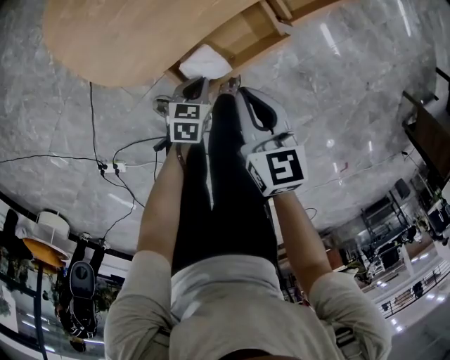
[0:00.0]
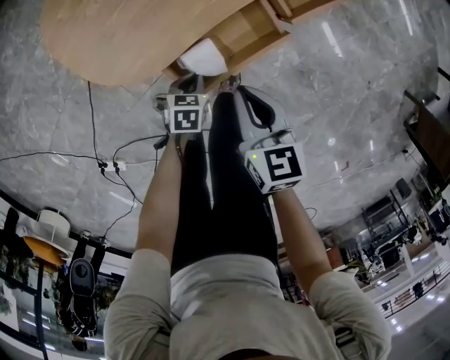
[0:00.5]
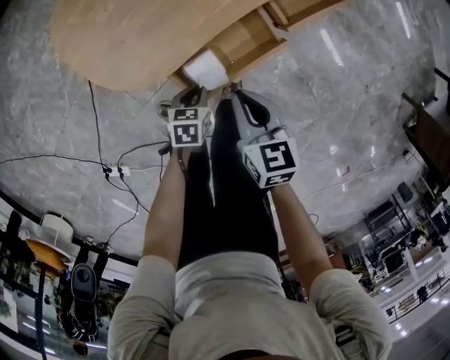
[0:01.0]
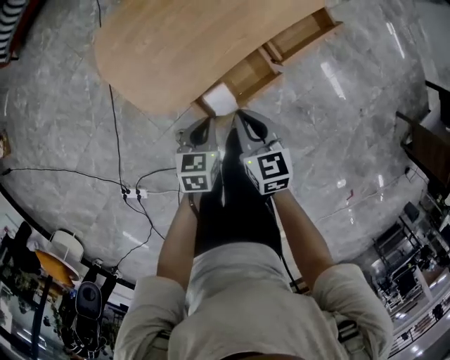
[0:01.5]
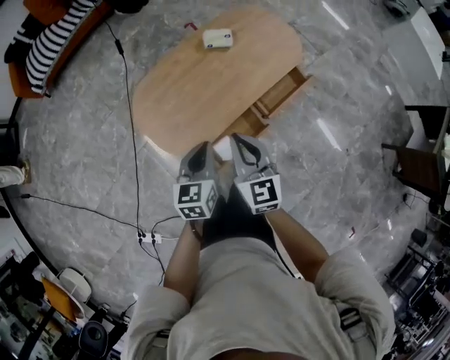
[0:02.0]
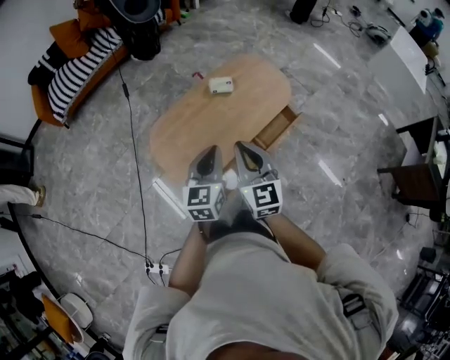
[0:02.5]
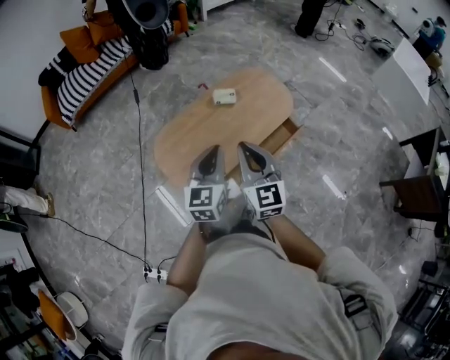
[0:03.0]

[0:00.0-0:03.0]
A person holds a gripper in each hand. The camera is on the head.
0:00.0 to 0:01.5: The left gripper shifts some 20 cm upward. Meanwhile the right gripper is displaced upward by approximately 10 cm.
0:01.5 to 0:03.0: The grippers both shift upward by about 40 cm. The right gripper points its fingers some 30 degrees further upward. The left gripper points its fingers approximately 40 degrees further upward.

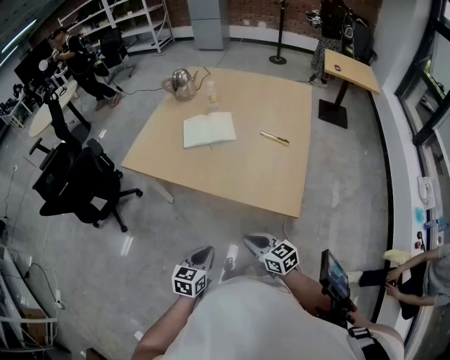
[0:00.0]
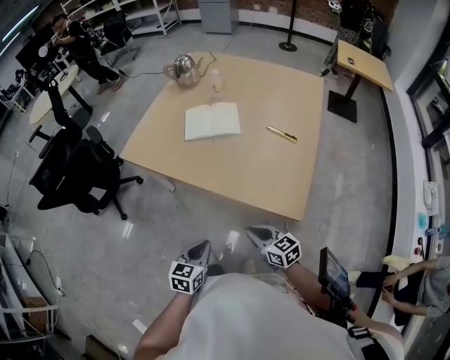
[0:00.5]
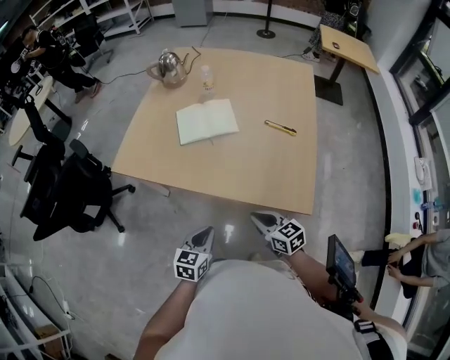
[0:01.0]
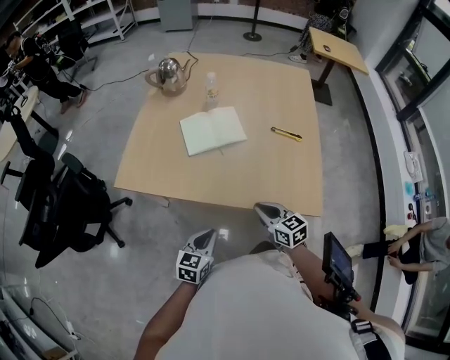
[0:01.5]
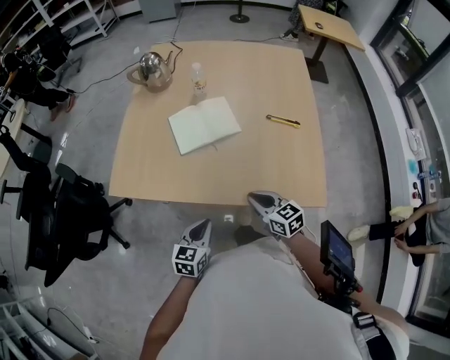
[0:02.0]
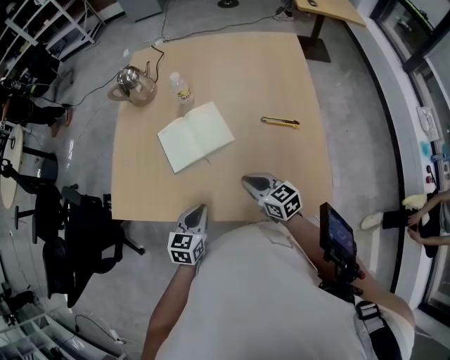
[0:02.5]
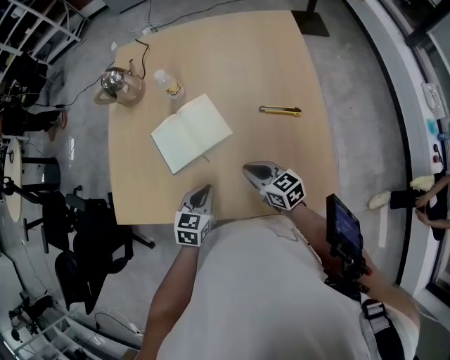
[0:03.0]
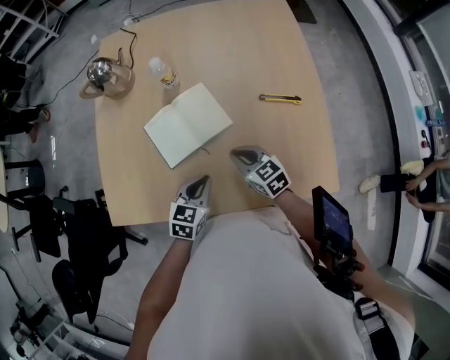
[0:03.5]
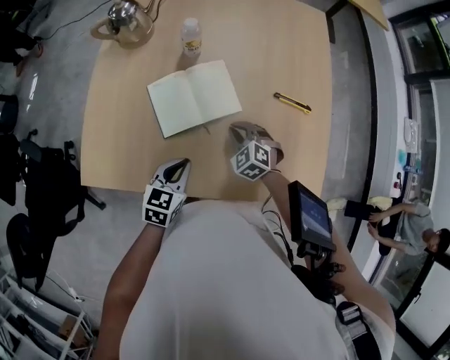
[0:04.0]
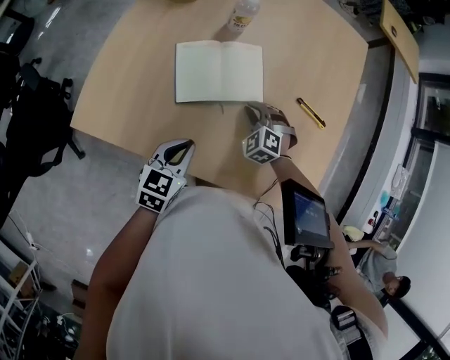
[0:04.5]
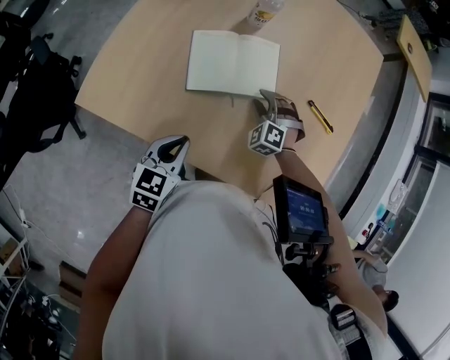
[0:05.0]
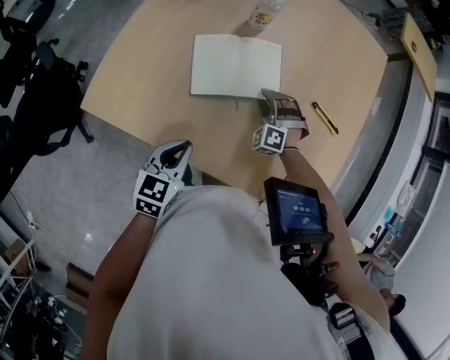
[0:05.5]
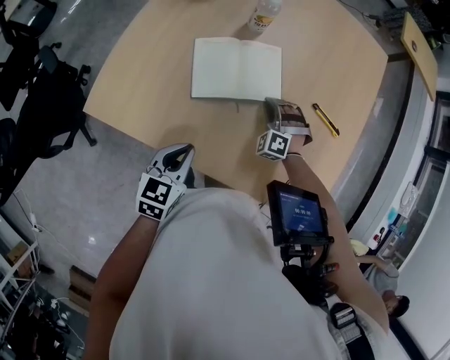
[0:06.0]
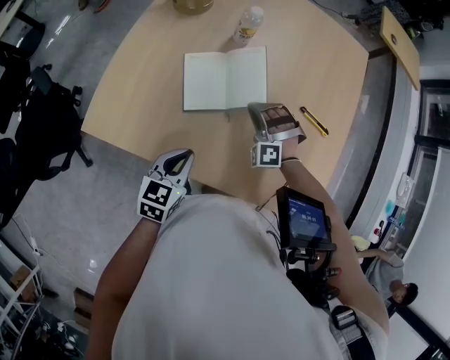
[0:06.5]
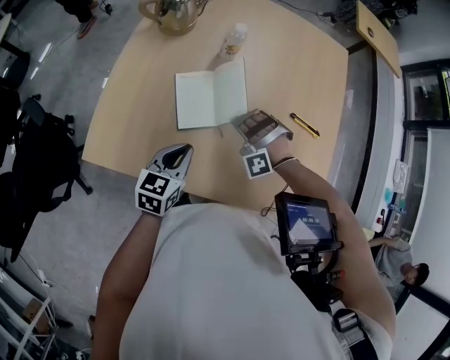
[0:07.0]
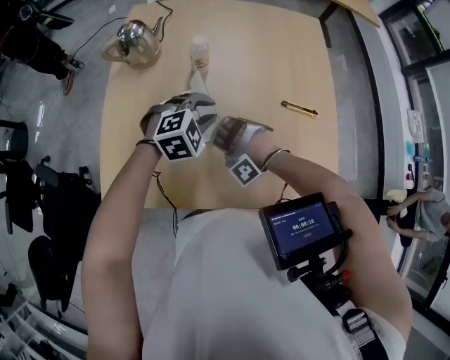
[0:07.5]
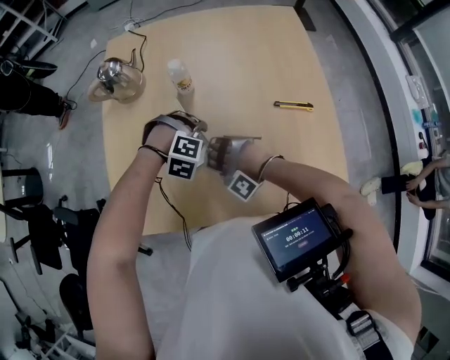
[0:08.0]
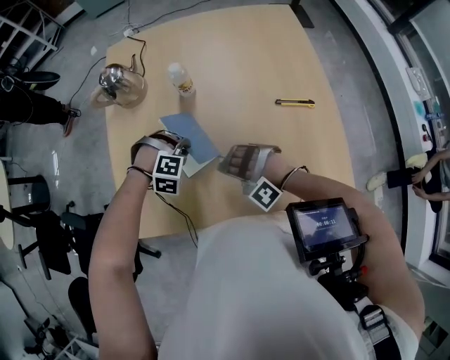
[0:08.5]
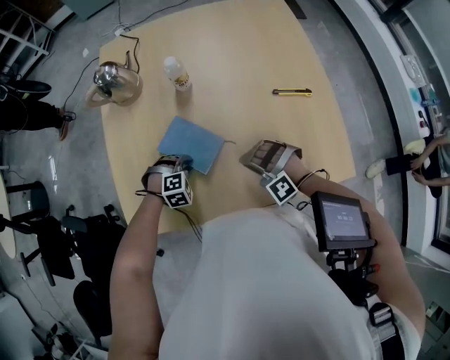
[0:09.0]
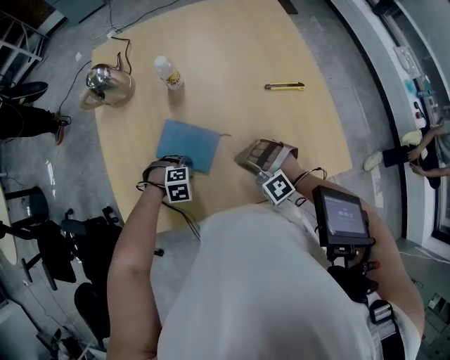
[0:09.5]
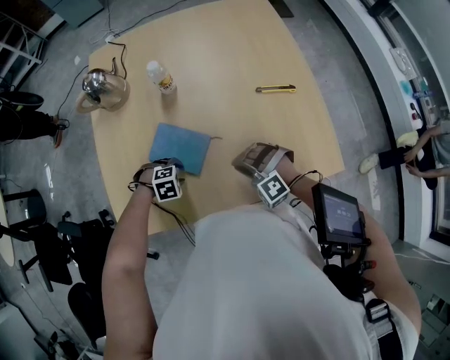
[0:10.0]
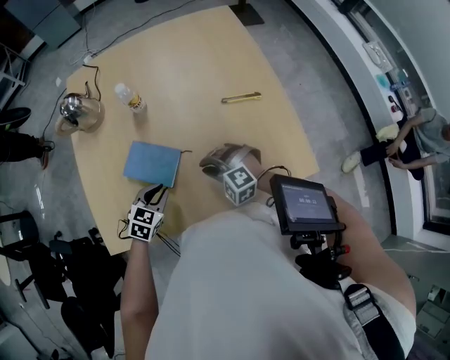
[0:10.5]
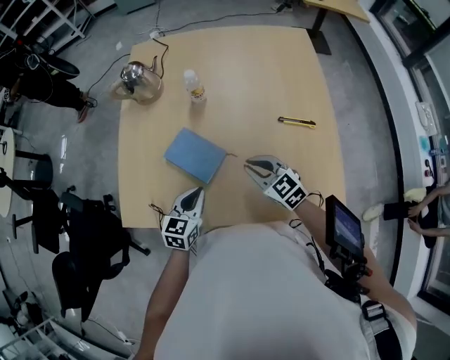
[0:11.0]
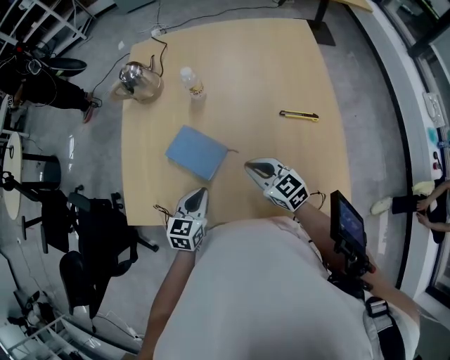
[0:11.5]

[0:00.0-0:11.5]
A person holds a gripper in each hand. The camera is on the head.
0:00.0 to 0:02.0: The left gripper moves forward and to the left, about 25 cm. The right gripper travels forward by roughly 20 cm.
0:02.0 to 0:04.0: Both grippers move forward, approximately 20 cm. The right gripper twists approximately 40 degrees counterclockwise, seen from behind.
0:04.0 to 0:06.0: The right gripper is displaced forward by roughly 5 cm, rotates around the line of its fingers by some 40 degrees, counterclockwise from behind, and opens, then closes once more. Meanwhile the left gripper travels backward by roughly 5 cm.
0:06.0 to 0:07.5: The right gripper goes approximately 15 cm to the left, upward and backward, and twists some 40 degrees counterclockwise, seen from behind; the left gripper shifts roughly 20 cm forward, rotates around the line of its fingers by some 70 degrees, clockwise from behind, and opens.
0:07.5 to 0:09.5: The left gripper travels downward by roughly 20 cm, and tilts its fingers about 30 degrees downward. The right gripper shifts by some 10 cm, and rotates around the line of its fingers by roughly 40 degrees, clockwise from behind.
0:09.5 to 0:11.5: The right gripper heads upward, covering about 5 cm, and twists approximately 70 degrees clockwise, seen from behind, while the left gripper heads upward, covering some 15 cm, angles its fingers upward, by approximately 50 degrees, and closes up.

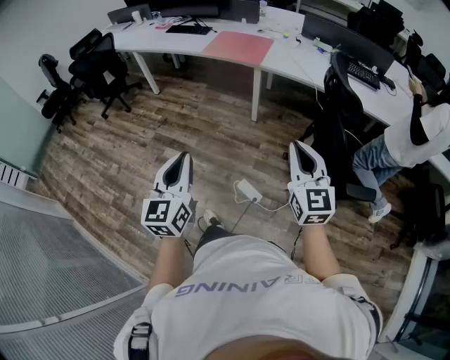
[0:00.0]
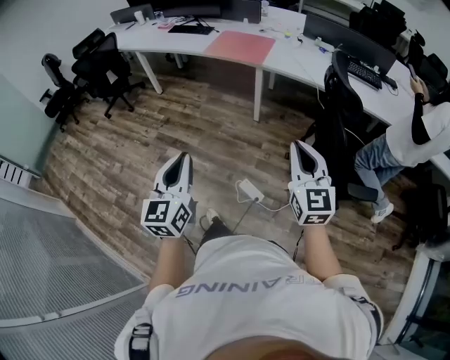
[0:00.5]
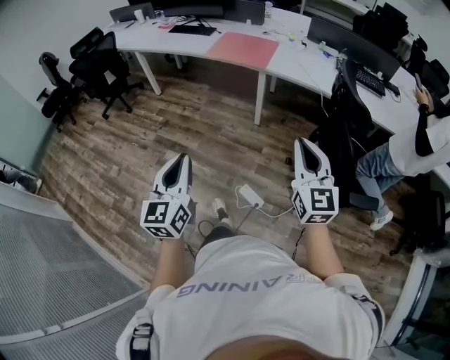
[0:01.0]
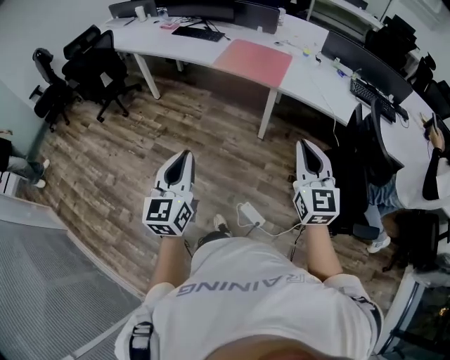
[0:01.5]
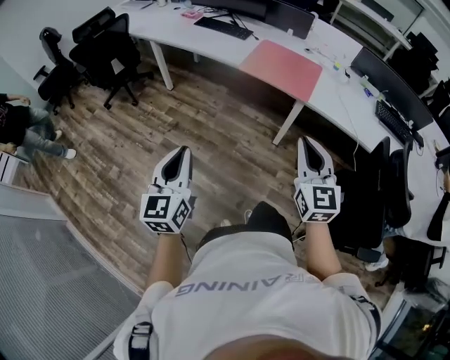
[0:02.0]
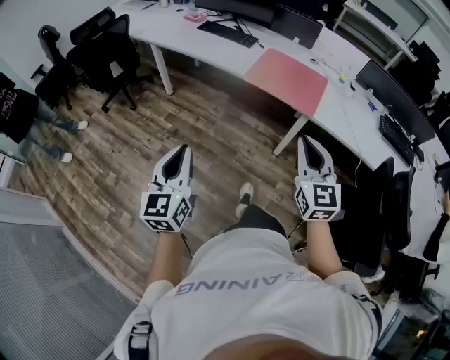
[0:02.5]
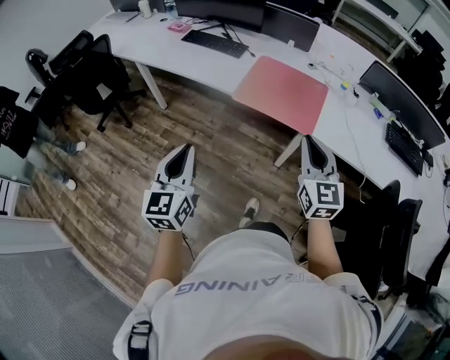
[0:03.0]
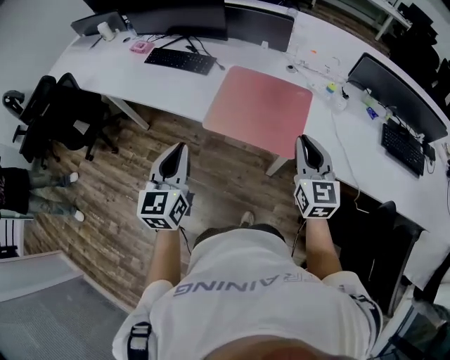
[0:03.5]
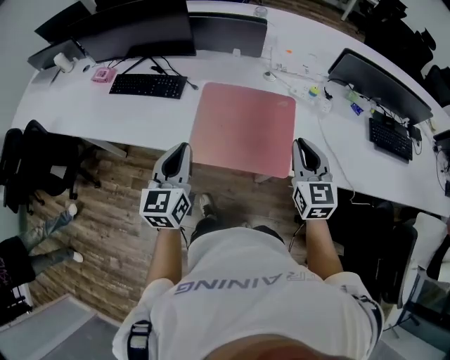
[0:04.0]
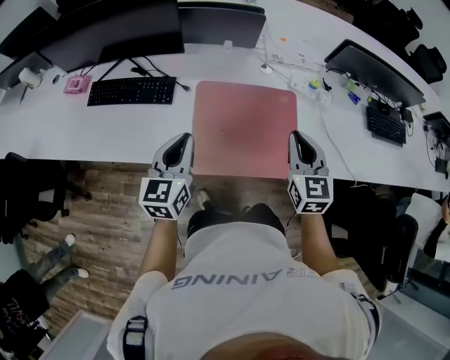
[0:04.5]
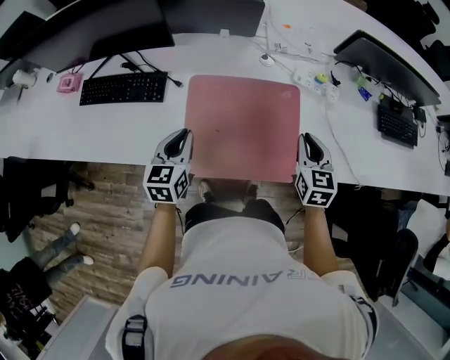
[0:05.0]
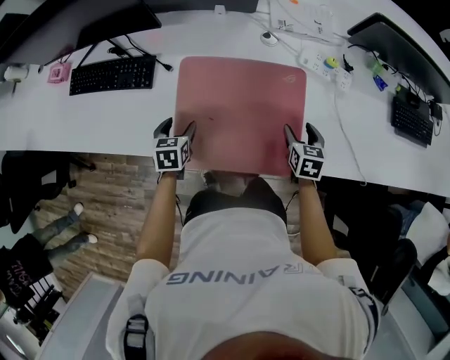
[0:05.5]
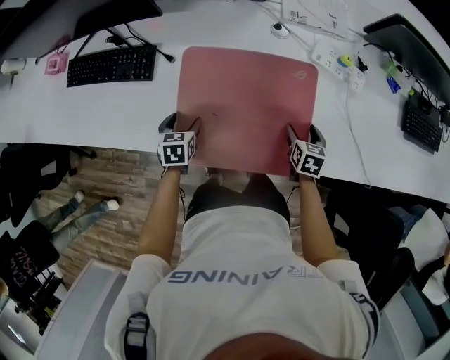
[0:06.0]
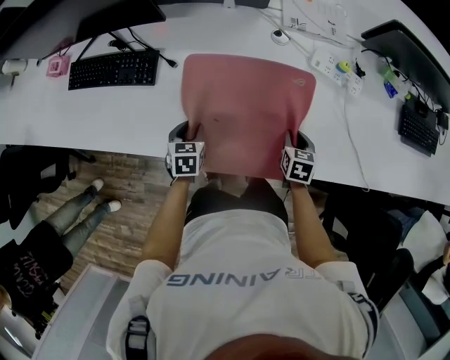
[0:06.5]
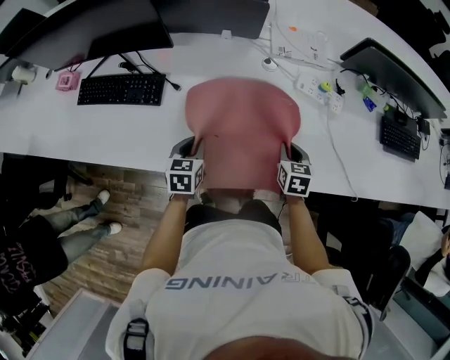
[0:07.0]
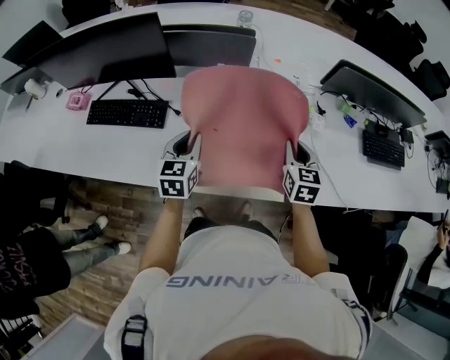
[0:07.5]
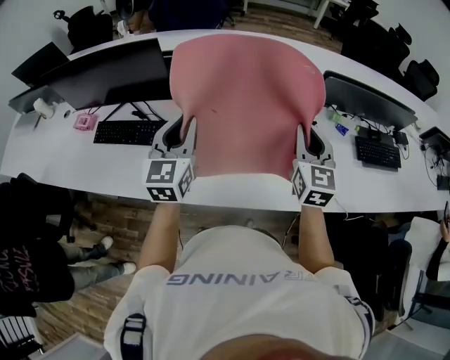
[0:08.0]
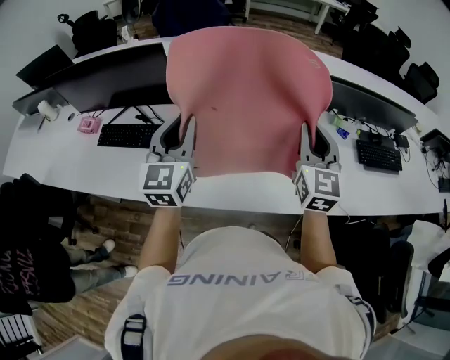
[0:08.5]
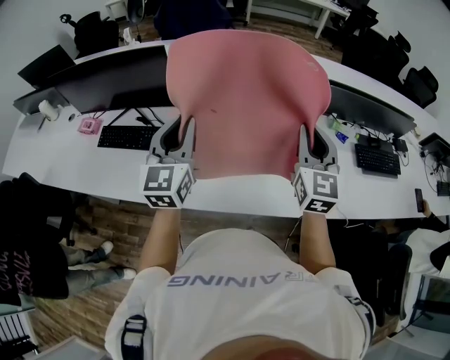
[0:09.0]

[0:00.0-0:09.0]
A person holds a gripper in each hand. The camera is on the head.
0:00.0 to 0:02.0: Both grippers move forward and to the left, about 40 cm.
0:02.0 to 0:04.5: The two grippers travel together, approximately 70 cm. The right gripper rotates some 30 degrees. Meanwhile the left gripper rotates approximately 30 degrees.
0:04.5 to 0:07.0: Both grippers travel together downward, roughly 20 cm. The right gripper changes its angle by approximately 30 degrees, and opens, then closes once more. Meanwhile the left gripper swivels roughly 30 degrees, and opens, then closes again.
0:07.0 to 0:09.0: The grippers both shift upward by some 35 cm. The left gripper tips its fingers upward by some 50 degrees; the right gripper tips its fingers upward by approximately 50 degrees.

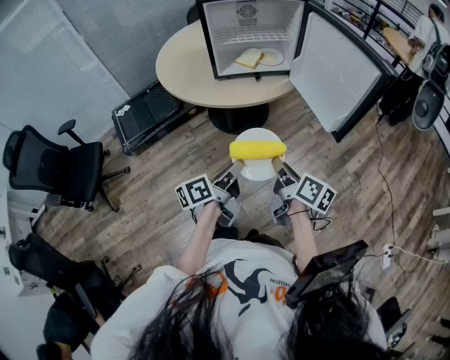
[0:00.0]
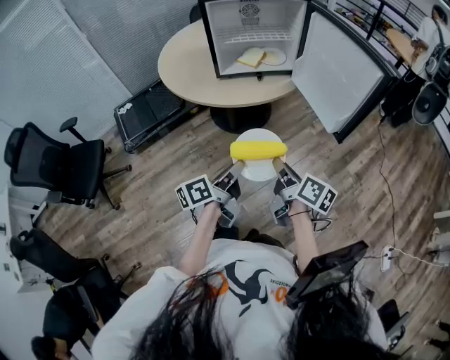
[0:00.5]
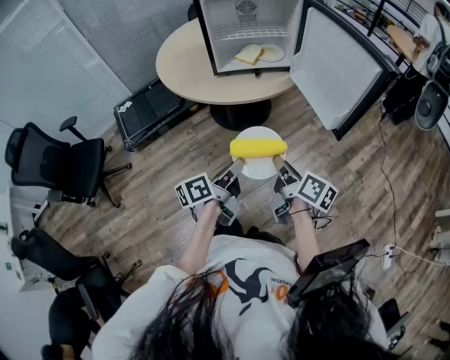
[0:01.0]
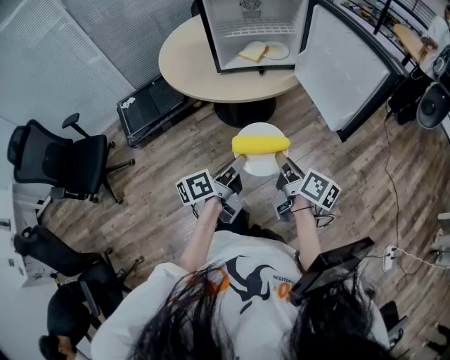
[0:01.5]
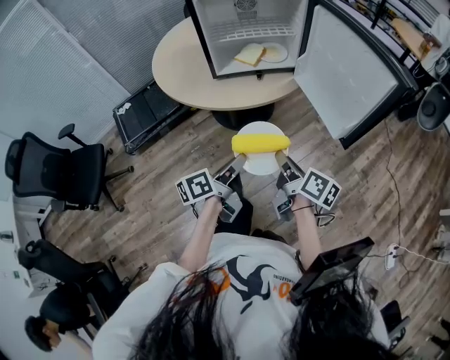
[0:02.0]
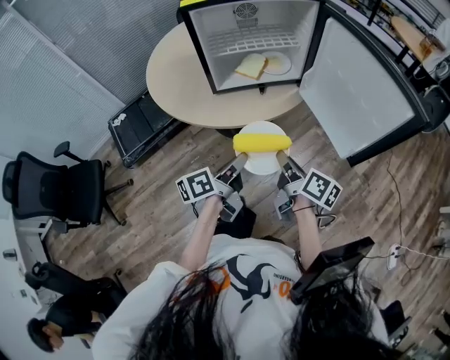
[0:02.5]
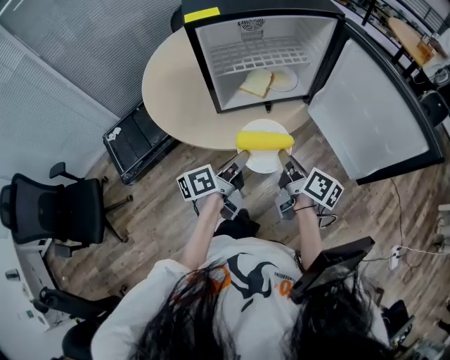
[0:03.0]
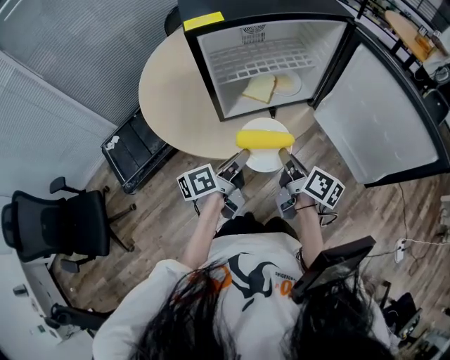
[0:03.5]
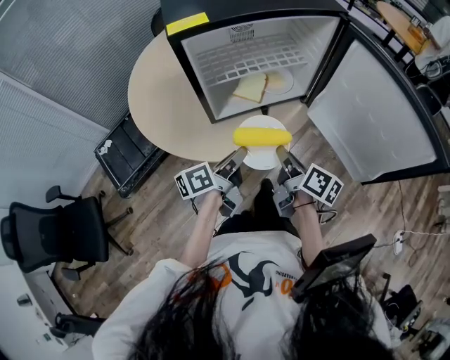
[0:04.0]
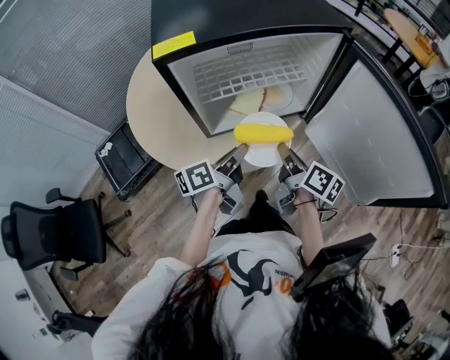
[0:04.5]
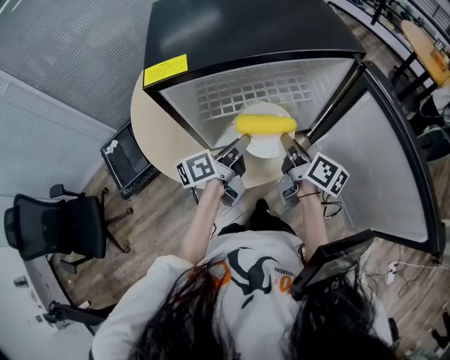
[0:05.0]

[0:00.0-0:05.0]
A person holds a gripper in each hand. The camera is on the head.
0:00.0 to 0:02.5: Both grippers travel together forward, some 15 cm.
0:02.5 to 0:05.0: Both grippers move forward, about 30 cm.
